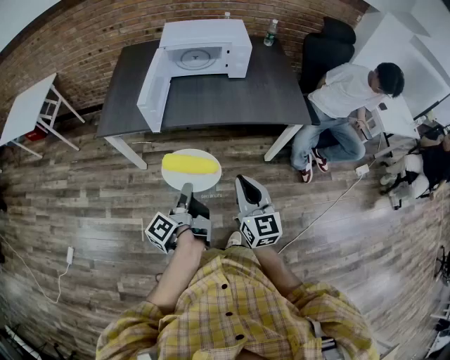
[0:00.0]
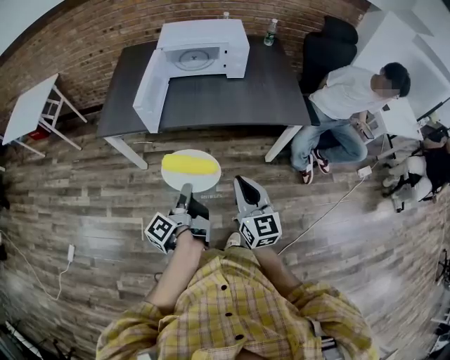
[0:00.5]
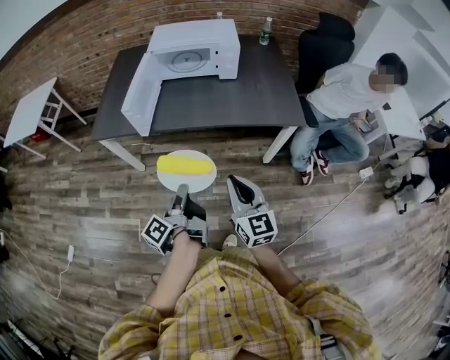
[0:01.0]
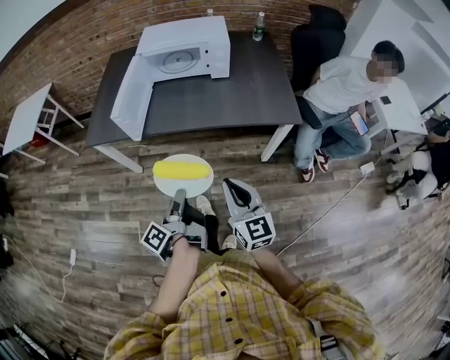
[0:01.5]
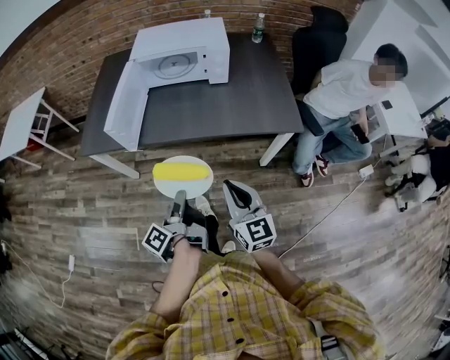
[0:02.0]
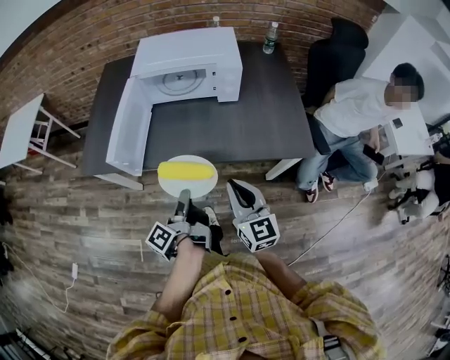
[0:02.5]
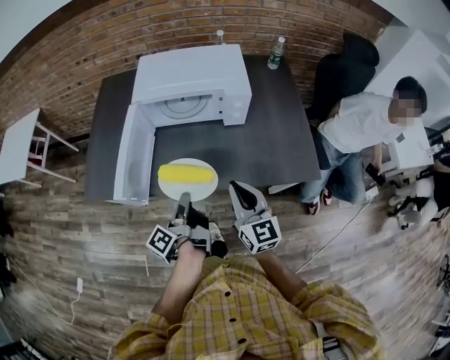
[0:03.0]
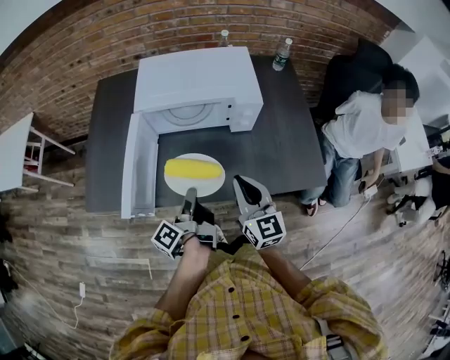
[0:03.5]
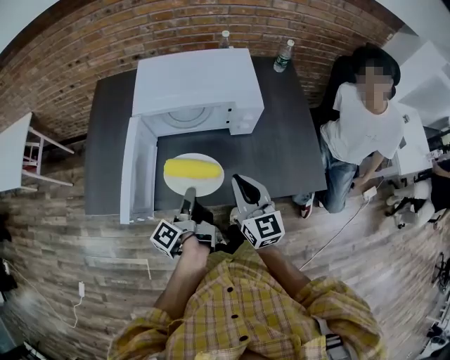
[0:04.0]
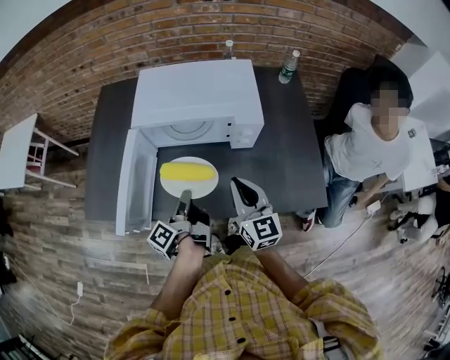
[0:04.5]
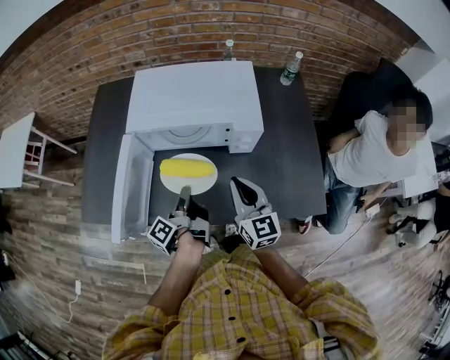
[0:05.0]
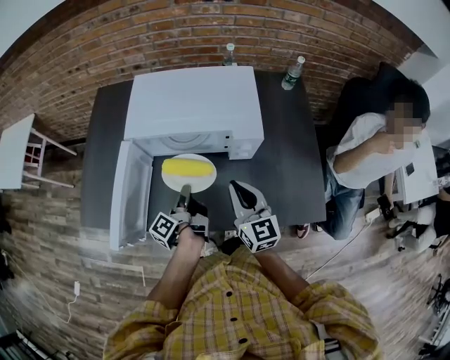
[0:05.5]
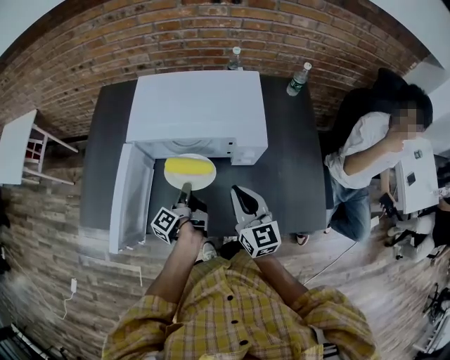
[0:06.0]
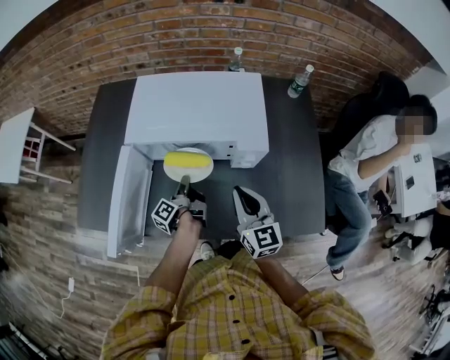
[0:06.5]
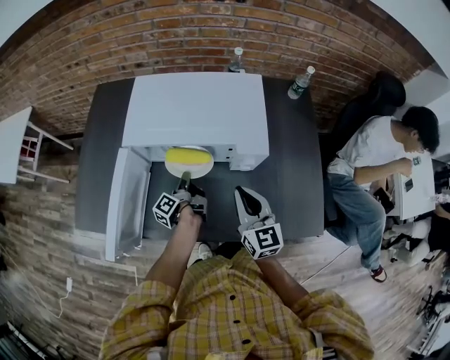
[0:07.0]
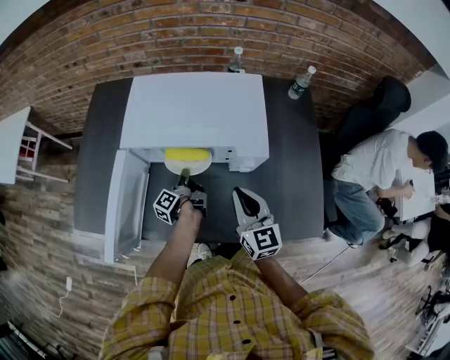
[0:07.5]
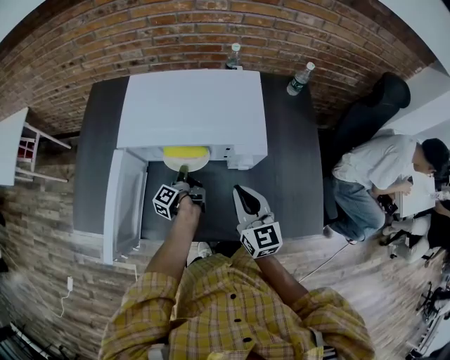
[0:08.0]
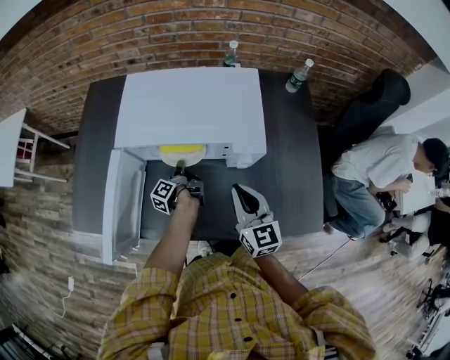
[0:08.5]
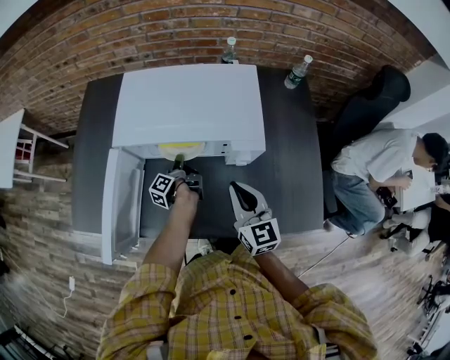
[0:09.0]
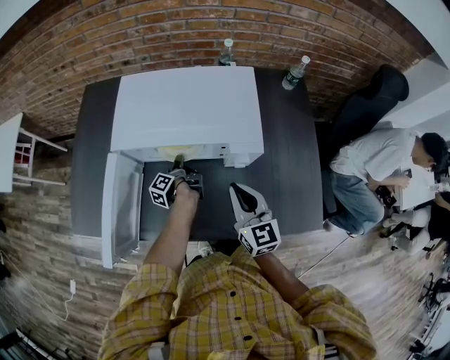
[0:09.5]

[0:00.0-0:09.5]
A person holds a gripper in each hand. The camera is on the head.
0:00.0 to 0:02.0: The right gripper ends up some 10 cm from where it was.
0:02.0 to 0:04.0: The right gripper shifts by roughly 35 cm.
0:04.0 to 0:05.5: The right gripper moves about 10 cm.

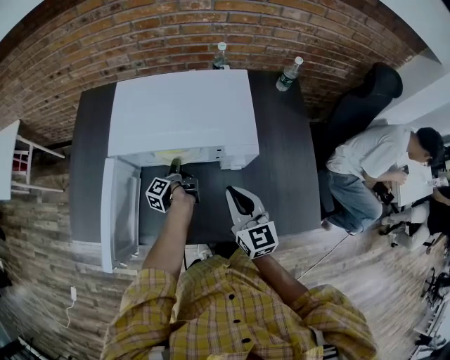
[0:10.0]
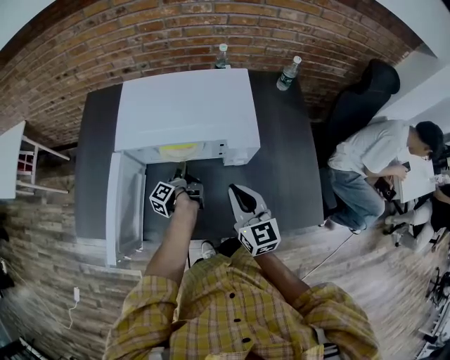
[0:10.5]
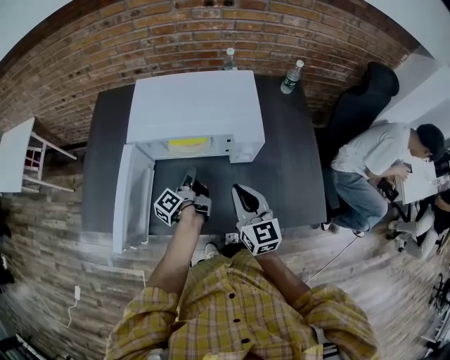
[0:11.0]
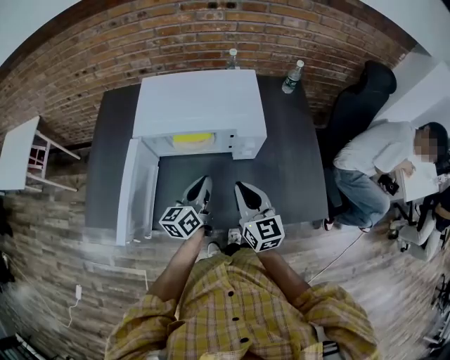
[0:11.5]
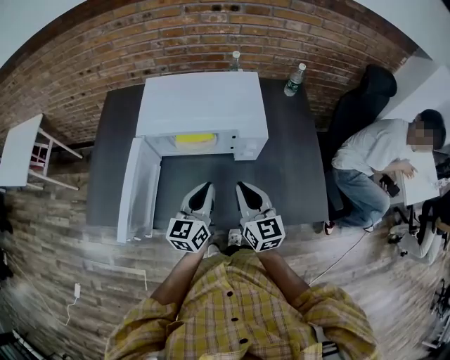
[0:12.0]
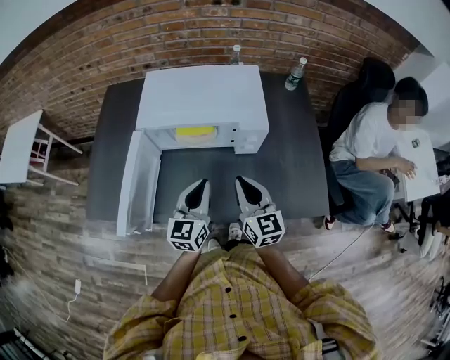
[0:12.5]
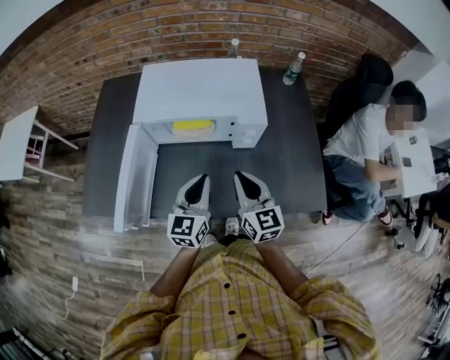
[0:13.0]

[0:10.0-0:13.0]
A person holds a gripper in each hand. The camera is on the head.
0:10.0 to 0:11.5: The right gripper moves roughly 5 cm.

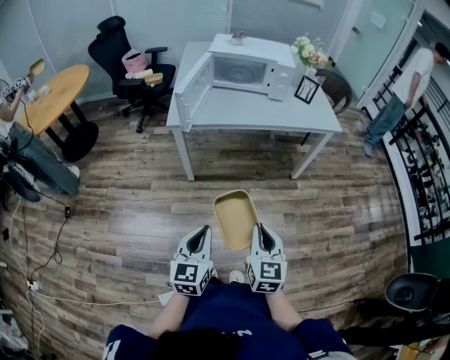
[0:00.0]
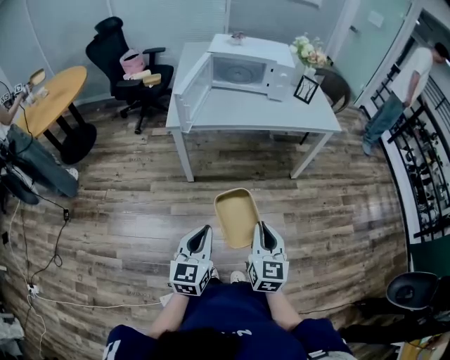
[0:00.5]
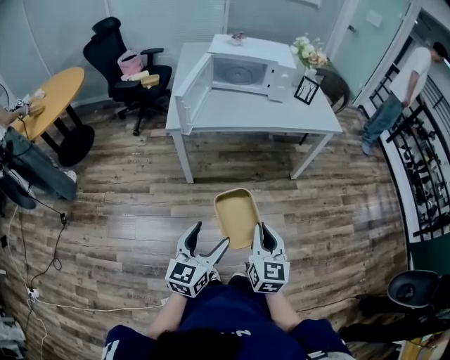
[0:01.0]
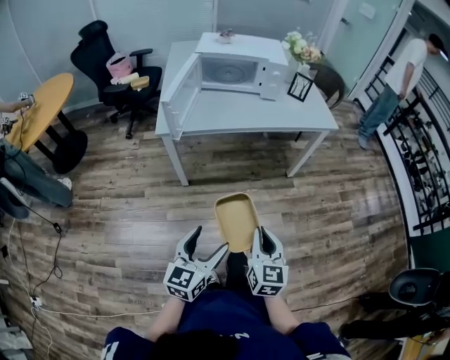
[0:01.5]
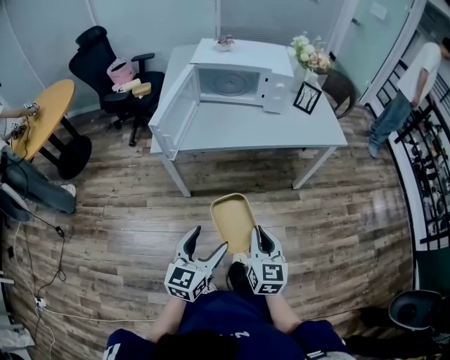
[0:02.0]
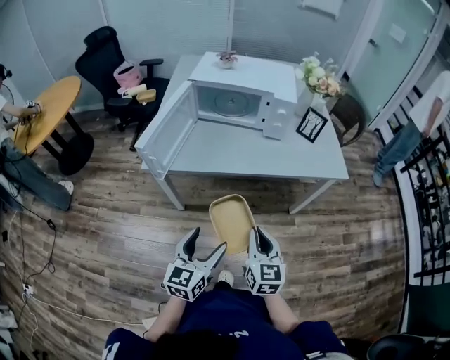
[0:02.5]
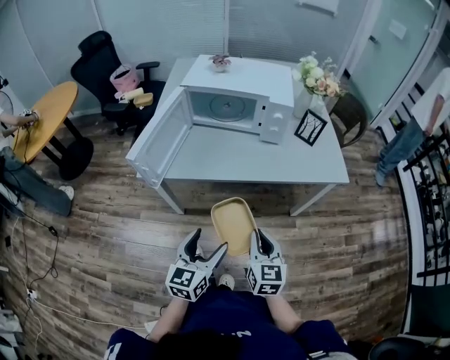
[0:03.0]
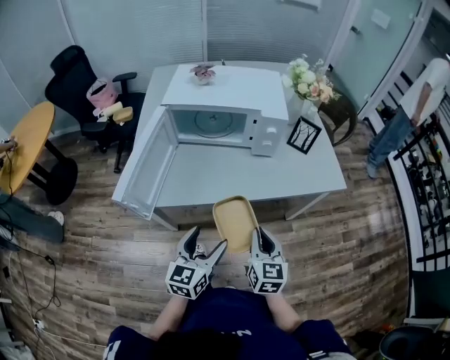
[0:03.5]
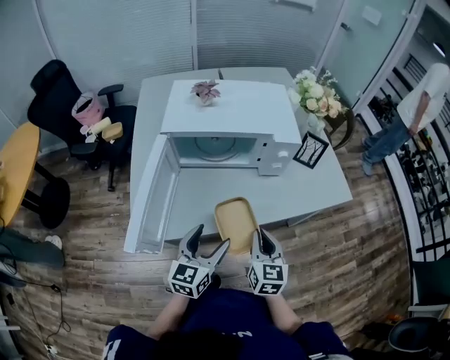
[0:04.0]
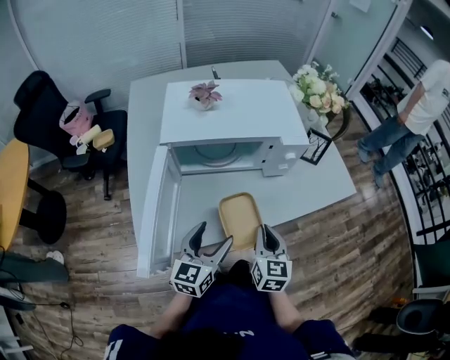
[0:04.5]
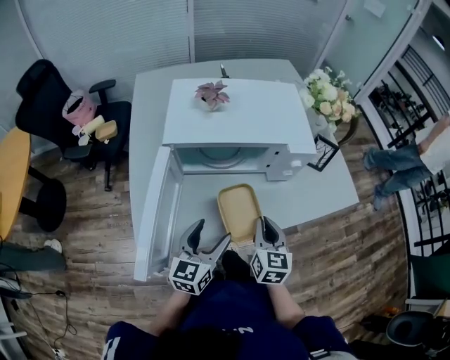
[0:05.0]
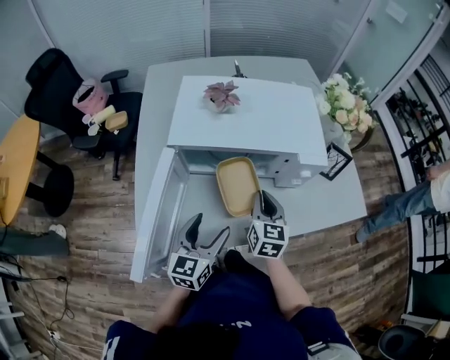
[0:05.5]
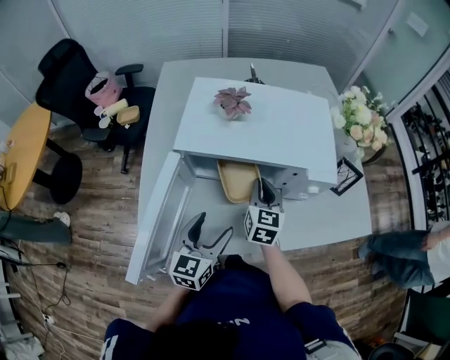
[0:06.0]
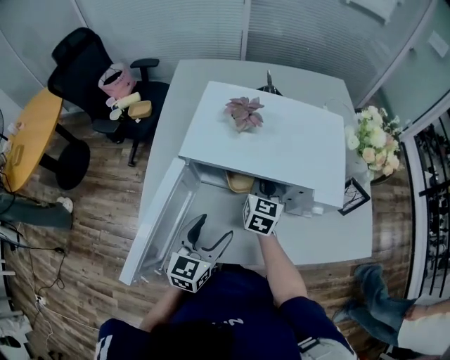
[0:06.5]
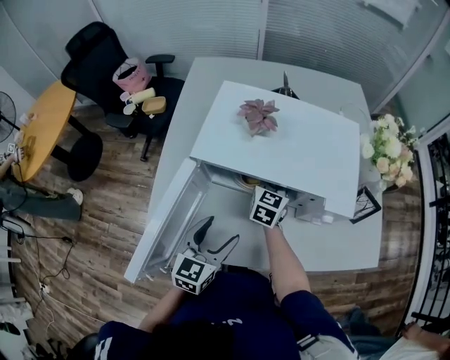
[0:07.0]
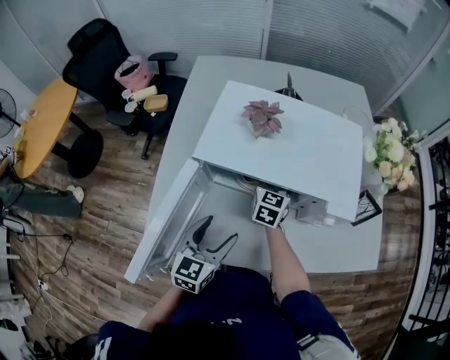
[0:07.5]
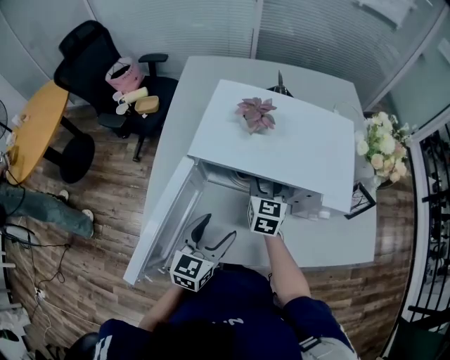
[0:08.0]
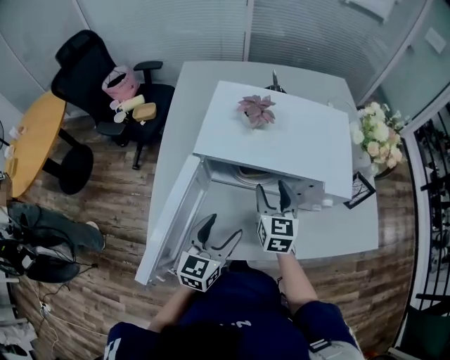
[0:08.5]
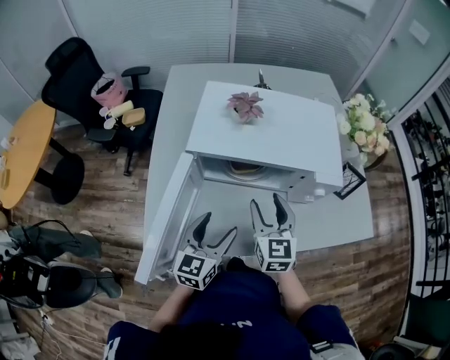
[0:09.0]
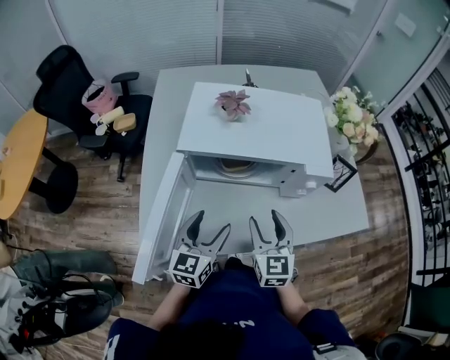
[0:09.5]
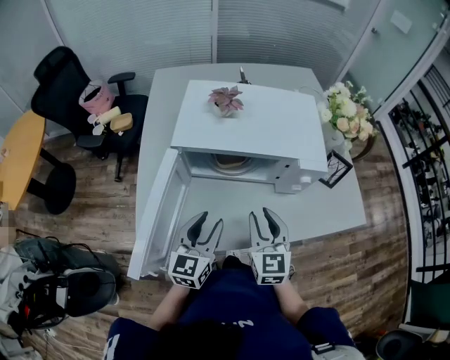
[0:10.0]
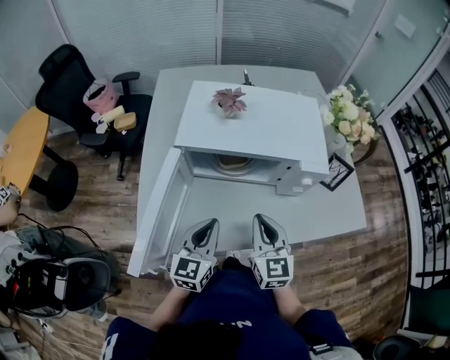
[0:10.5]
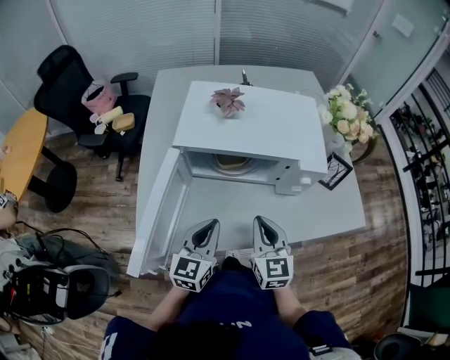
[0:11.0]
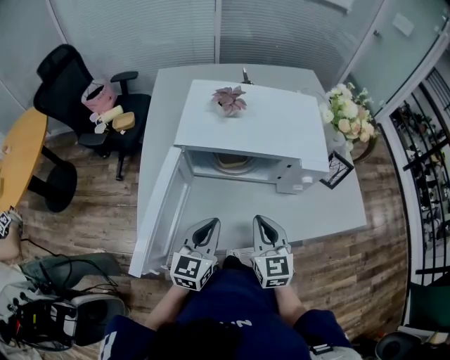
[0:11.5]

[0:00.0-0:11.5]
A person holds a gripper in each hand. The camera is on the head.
0:00.0 to 0:02.0: Both grippers travel together forward, roughly 15 cm. The left gripper opens its fingers.
0:02.0 to 0:04.0: The grippers both shift forward by about 35 cm.
0:04.0 to 0:06.0: The left gripper is displaced forward and to the left by about 15 cm. Meanwhile the right gripper heads forward and to the left, covering roughly 25 cm.
0:06.0 to 0:07.5: The right gripper heads forward, covering roughly 10 cm, and opens up.
0:07.5 to 0:09.5: The right gripper goes about 25 cm backward.
0:09.5 to 0:11.5: The right gripper closes, while the left gripper closes.

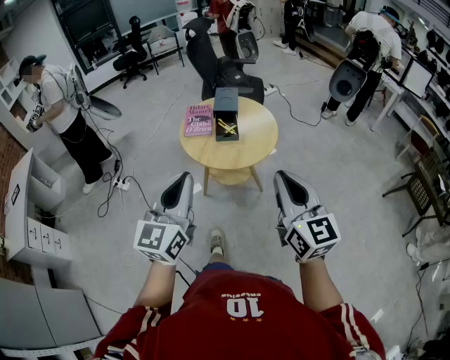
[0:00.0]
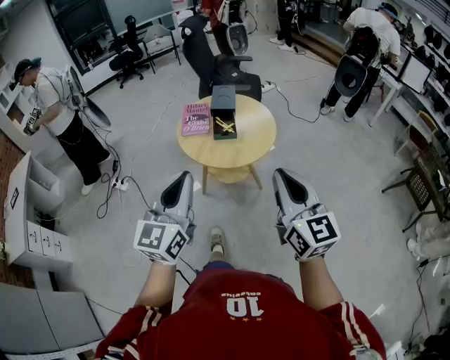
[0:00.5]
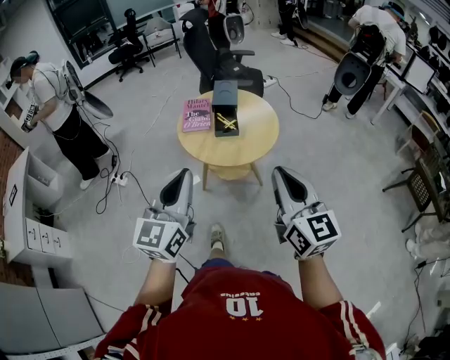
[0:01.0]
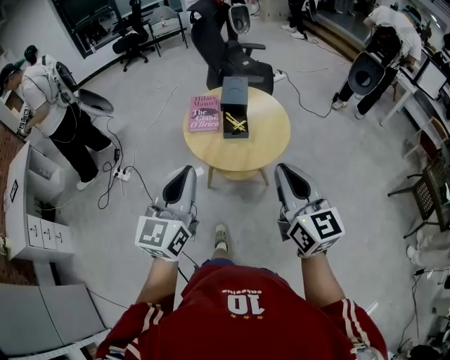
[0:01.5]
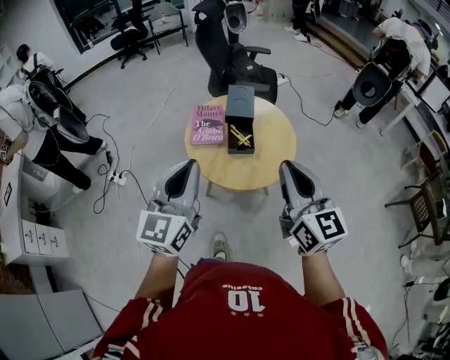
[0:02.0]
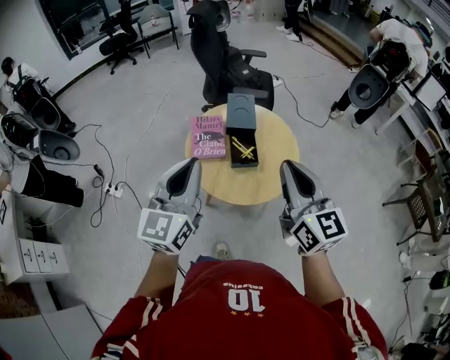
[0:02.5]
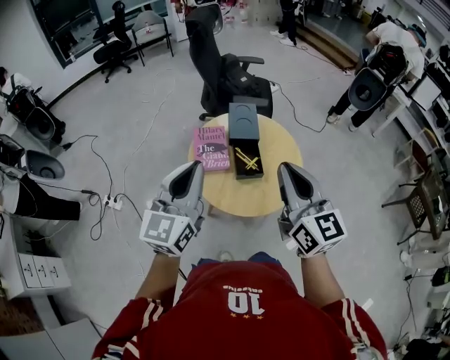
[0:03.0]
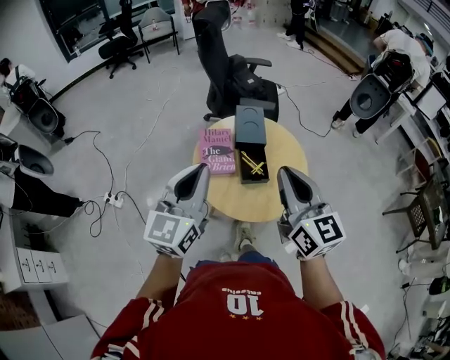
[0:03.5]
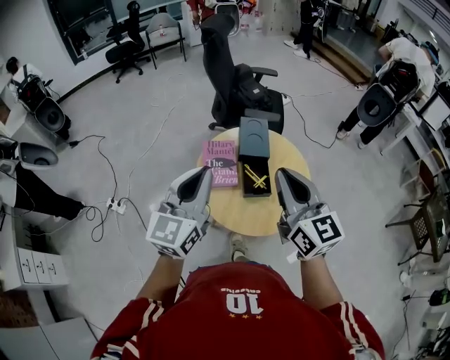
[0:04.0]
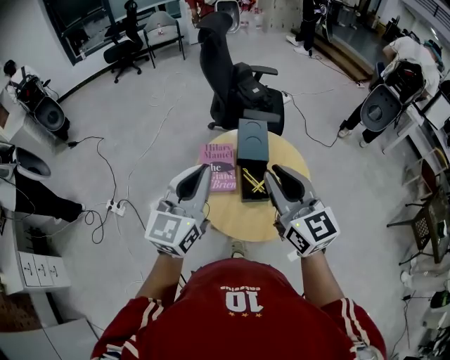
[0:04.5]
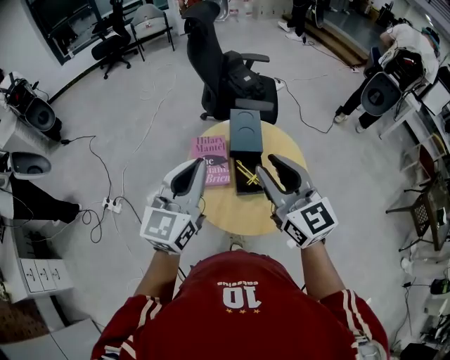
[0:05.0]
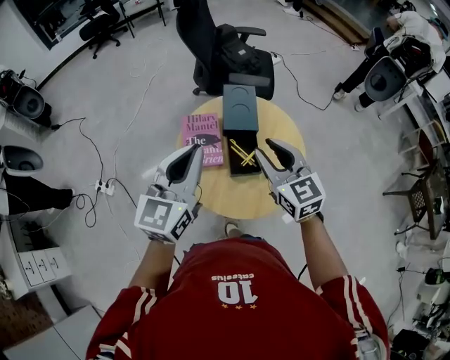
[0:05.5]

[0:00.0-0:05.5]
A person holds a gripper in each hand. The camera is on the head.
0:00.0 to 0:02.0: The two grippers go roughly 20 cm forward.
0:02.0 to 0:03.5: The two grippers go some 15 cm forward and to the left.
0:03.5 to 0:05.5: The left gripper moves forward, some 10 cm. The right gripper moves forward and downward, some 20 cm, and opens its fingers.
